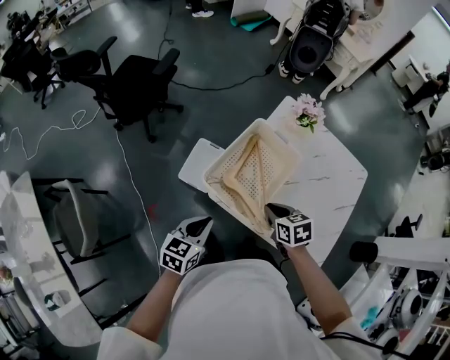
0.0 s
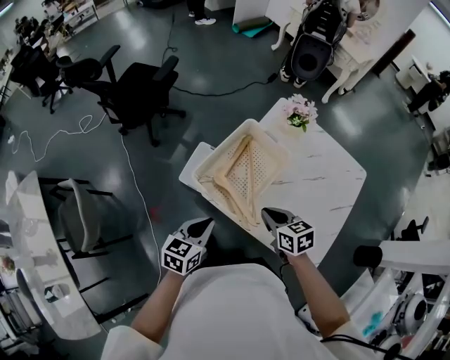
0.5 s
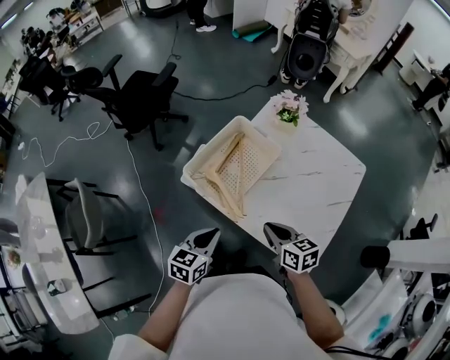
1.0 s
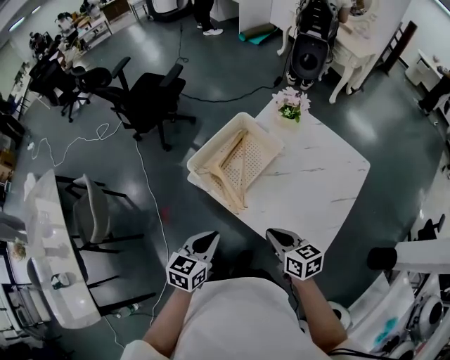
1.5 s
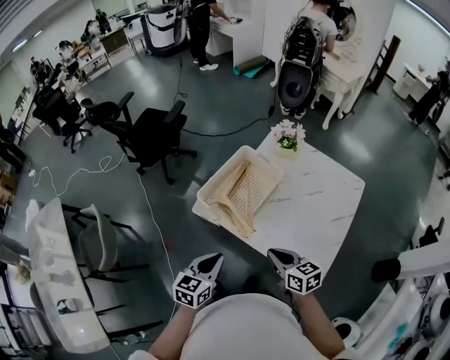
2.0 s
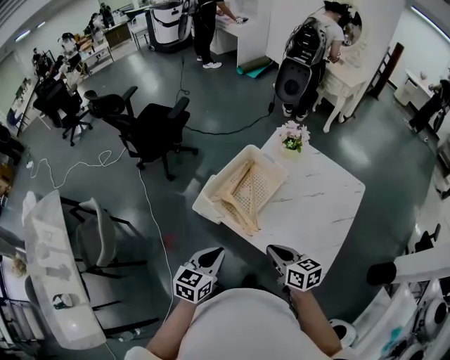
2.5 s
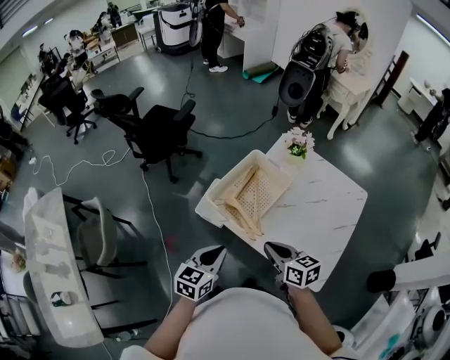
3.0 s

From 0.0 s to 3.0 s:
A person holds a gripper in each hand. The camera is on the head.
From 0.0 s to 1.5 s: The right gripper heads backward and to the right, covering some 20 cm, and rotates some 20 degrees. Meanwhile the left gripper travels to the right, backward and upward by about 20 cm.
From 1.5 s to 3.0 s: The left gripper moves to the left, approximately 5 cm. The right gripper moves to the left and upward, some 10 cm.

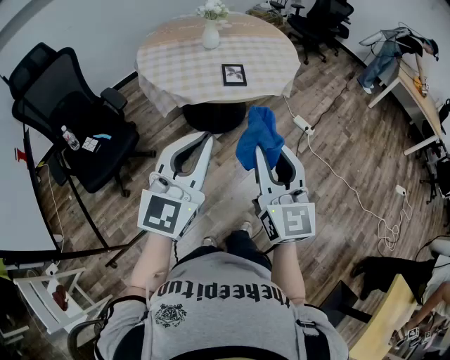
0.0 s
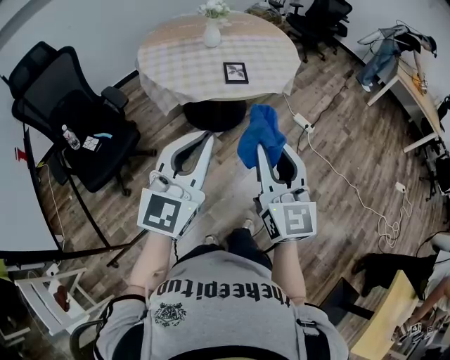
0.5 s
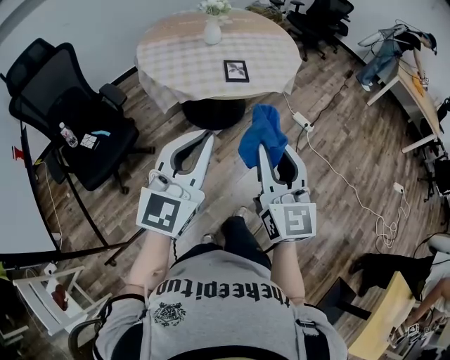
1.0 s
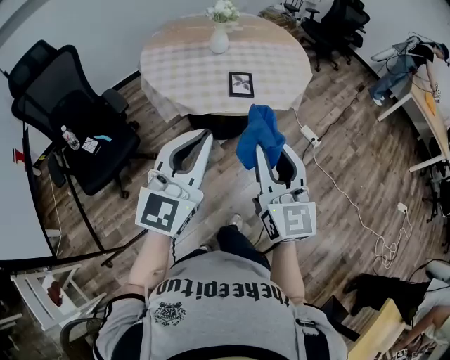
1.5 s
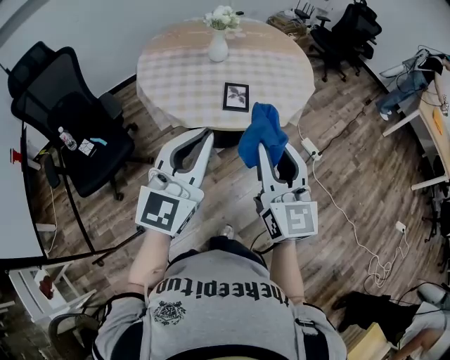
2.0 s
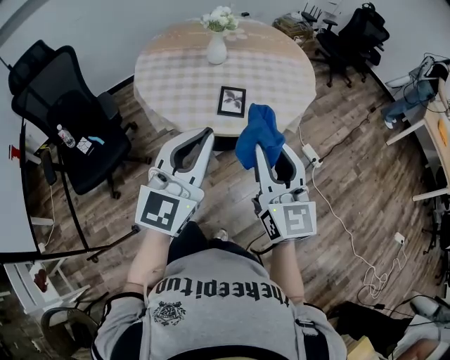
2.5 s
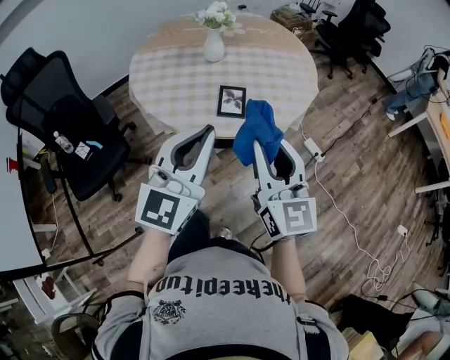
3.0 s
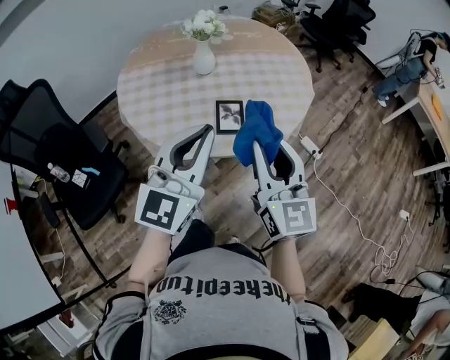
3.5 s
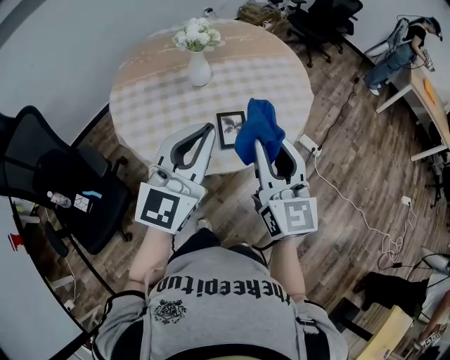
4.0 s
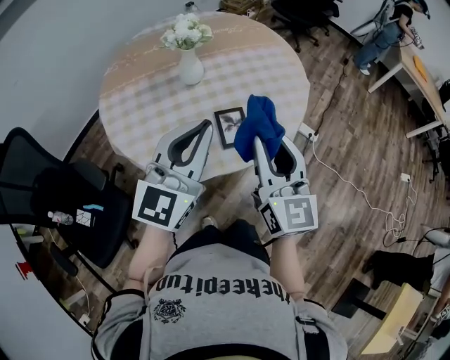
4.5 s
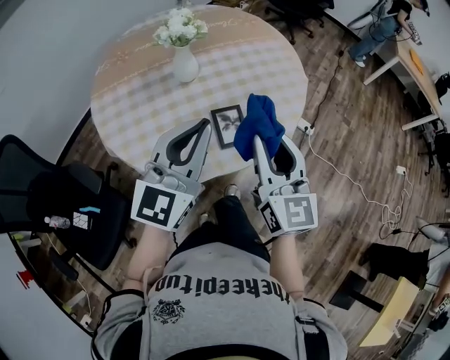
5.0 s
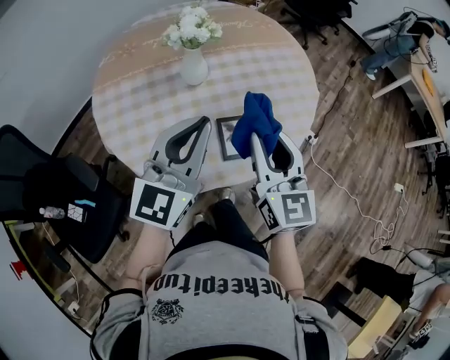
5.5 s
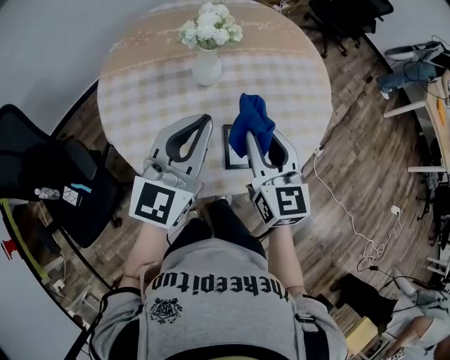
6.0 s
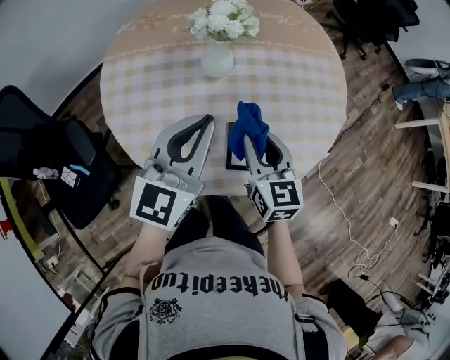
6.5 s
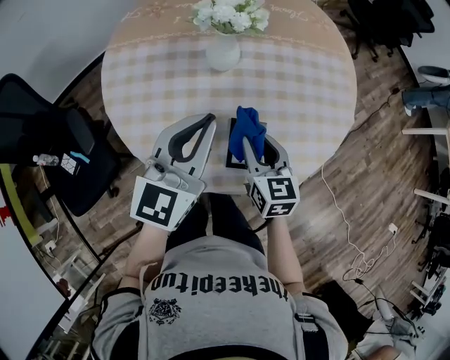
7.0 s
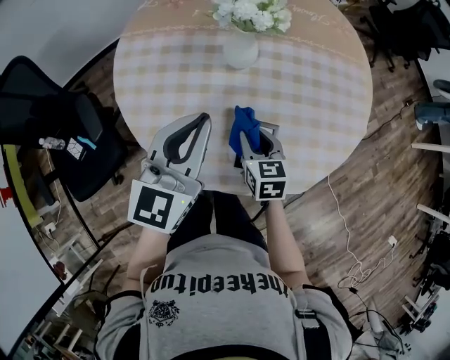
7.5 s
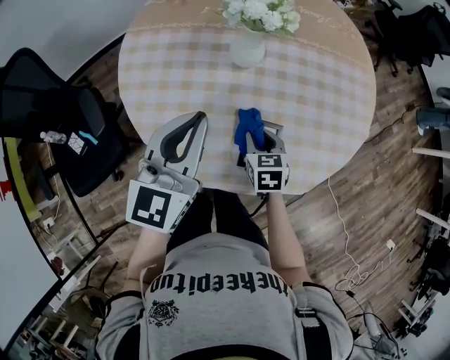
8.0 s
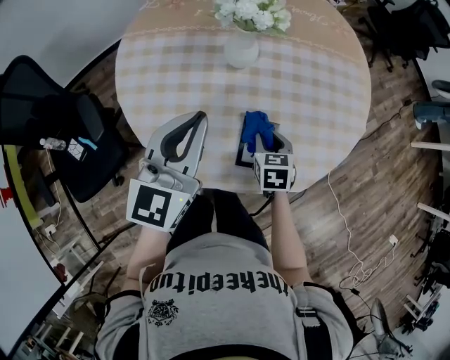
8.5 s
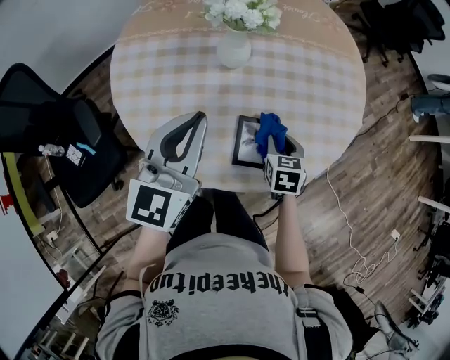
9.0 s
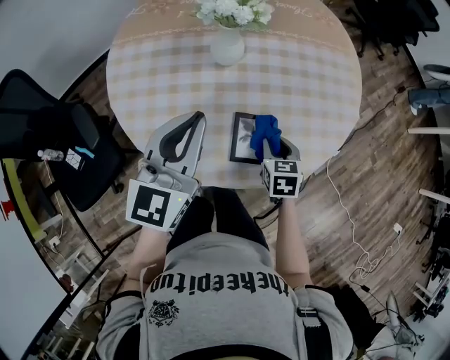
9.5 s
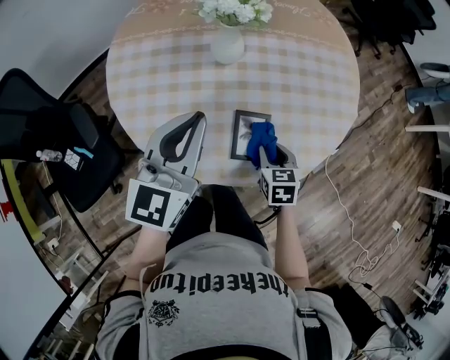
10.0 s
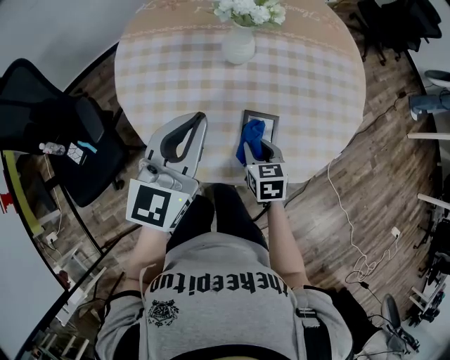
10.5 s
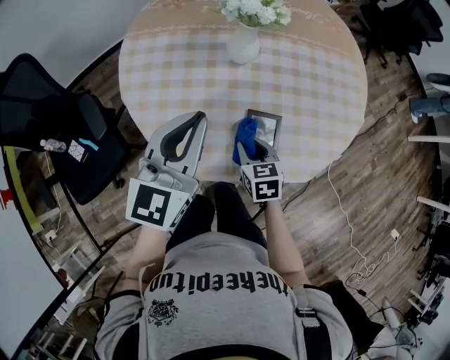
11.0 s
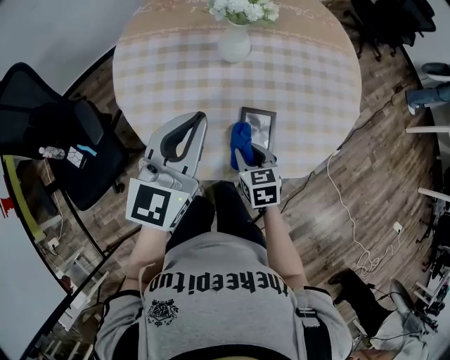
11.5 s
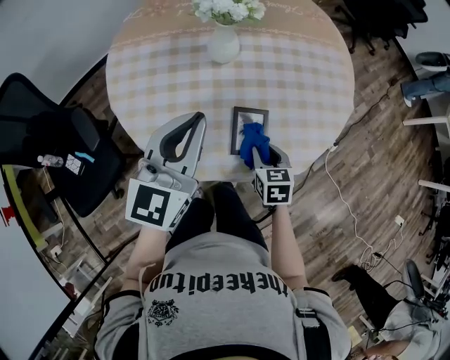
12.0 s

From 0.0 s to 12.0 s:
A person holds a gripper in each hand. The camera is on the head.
From 0.0 s to 2.0 s: The two grippers go some 15 cm forward.
From 2.0 s to 4.0 s: The grippers both shift forward by approximately 15 cm.
From 4.0 s to 6.0 s: The right gripper is displaced forward, downward and to the left by roughly 20 cm, while the left gripper moves forward and to the left, some 15 cm.
From 6.0 s to 8.0 s: The left gripper travels downward by some 5 cm; the right gripper goes some 25 cm downward, and angles its fingers downward, by approximately 40 degrees.
From 8.0 s to 10.0 s: The right gripper shifts about 10 cm to the right and backward.
From 10.0 s to 12.0 s: The right gripper moves some 10 cm to the left and comes back.

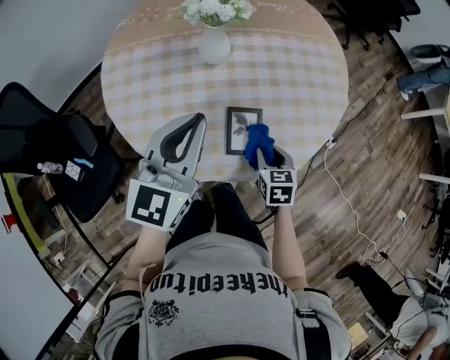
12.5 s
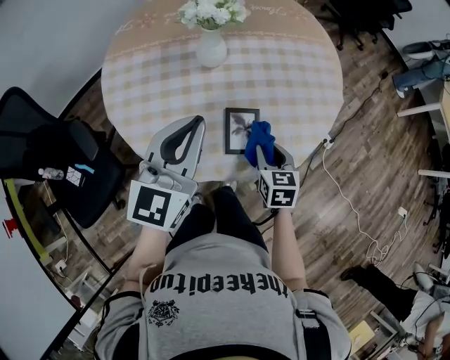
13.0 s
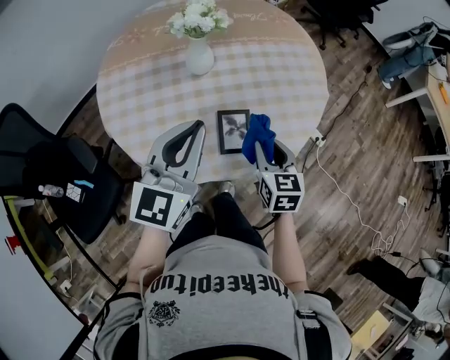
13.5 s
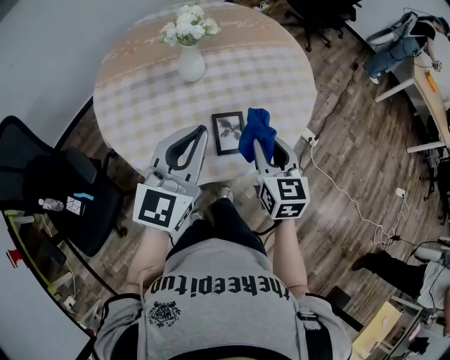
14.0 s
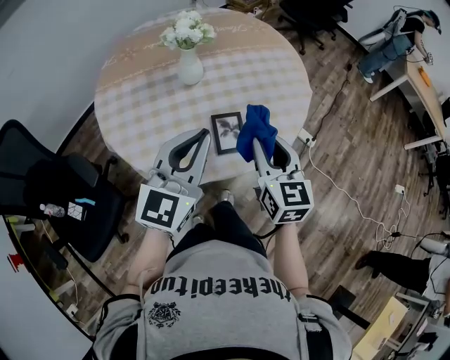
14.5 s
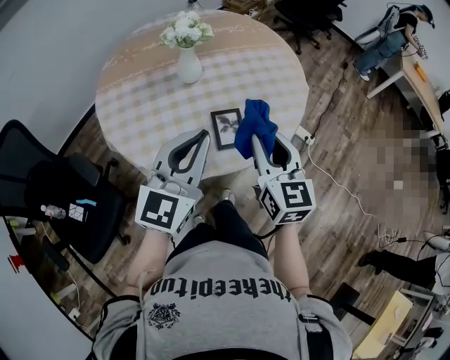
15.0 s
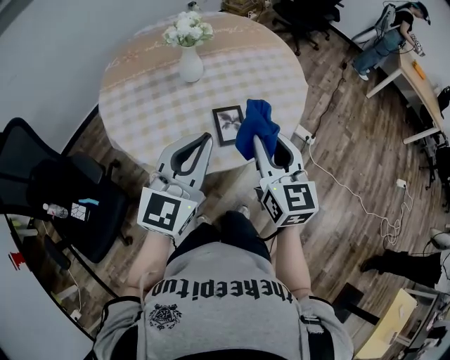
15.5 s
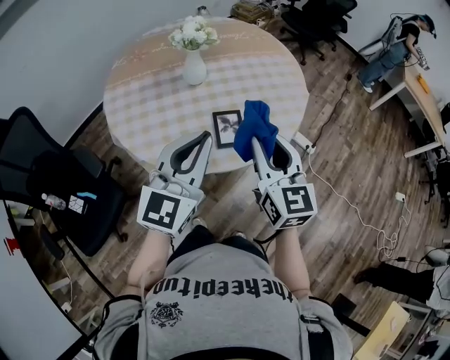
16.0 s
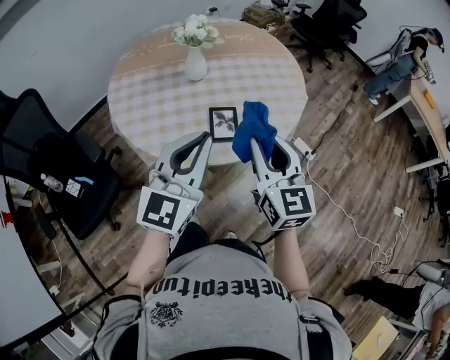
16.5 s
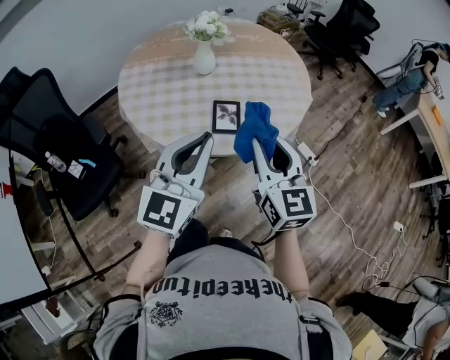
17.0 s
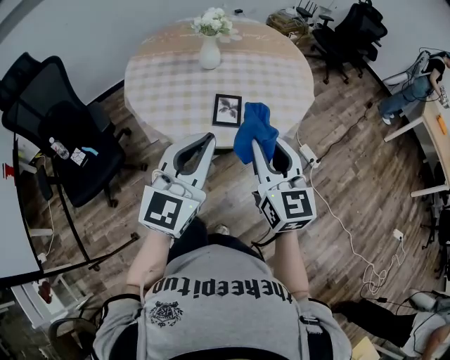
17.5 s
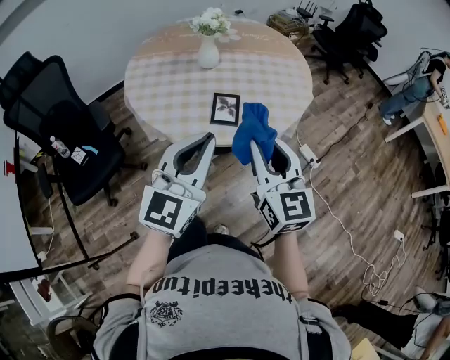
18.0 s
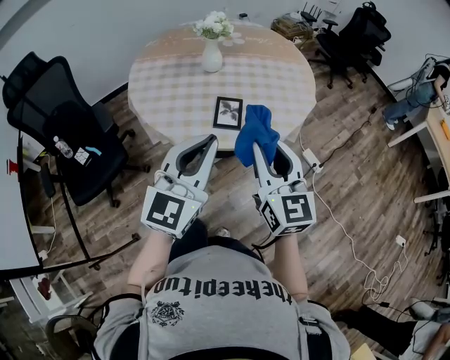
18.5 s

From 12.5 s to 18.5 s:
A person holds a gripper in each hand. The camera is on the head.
From 12.5 s to 14.5 s: The left gripper goes roughly 10 cm backward, while the right gripper shifts some 20 cm upward, and points its fingers approximately 30 degrees further upward.
From 14.5 s to 16.5 s: The right gripper heads backward and upward, covering approximately 10 cm. The left gripper heads backward and to the right, covering about 10 cm.
From 16.5 s to 18.5 s: Both grippers move backward, roughly 10 cm.

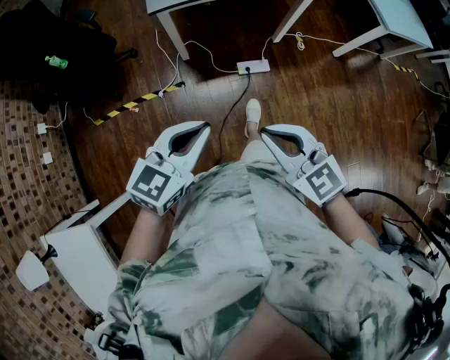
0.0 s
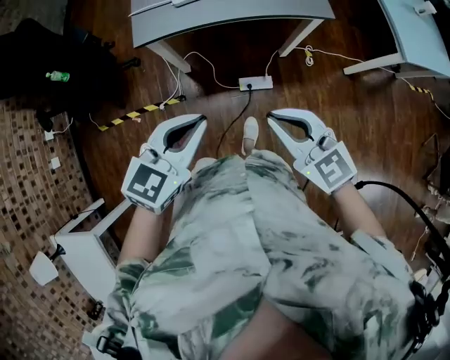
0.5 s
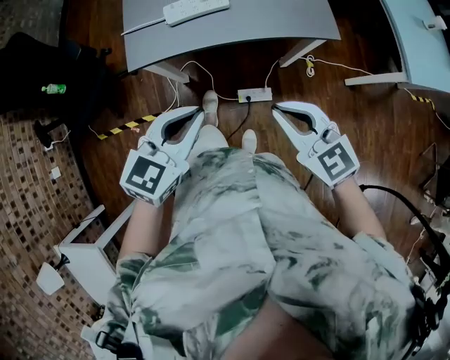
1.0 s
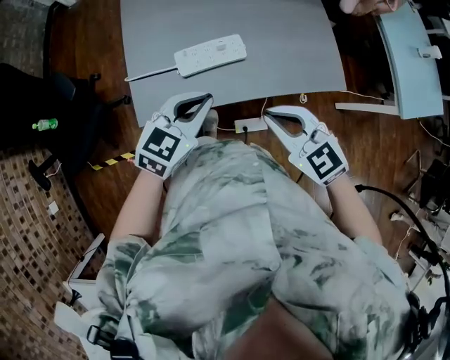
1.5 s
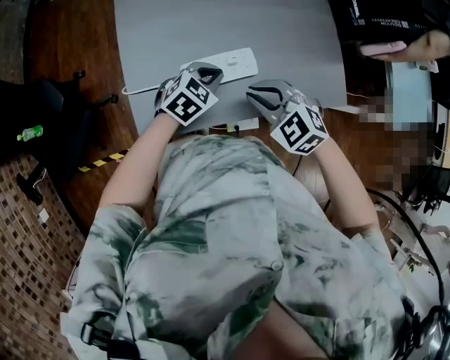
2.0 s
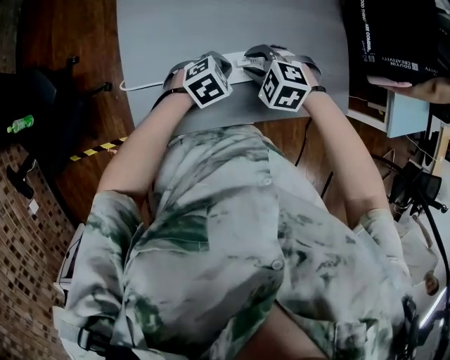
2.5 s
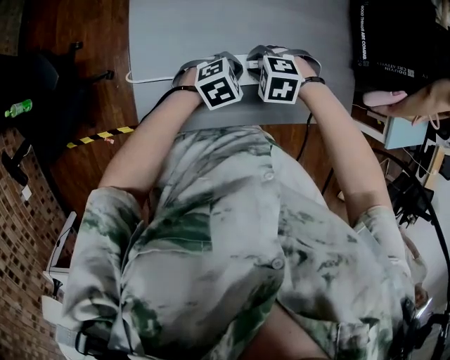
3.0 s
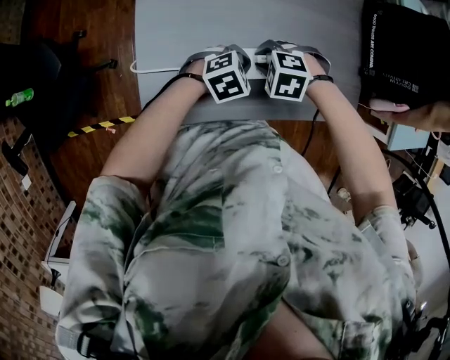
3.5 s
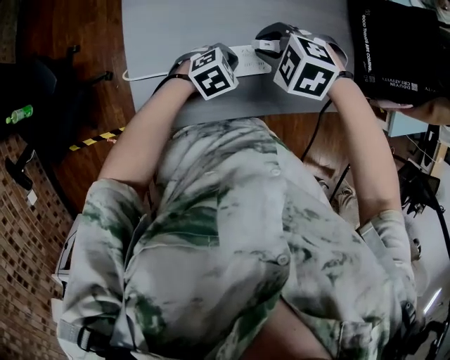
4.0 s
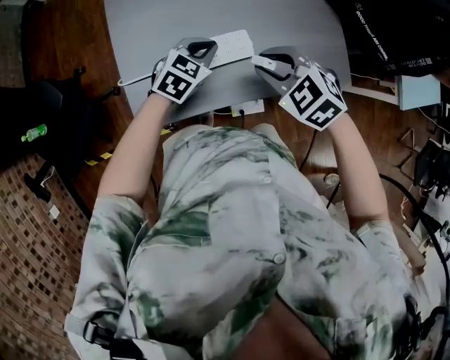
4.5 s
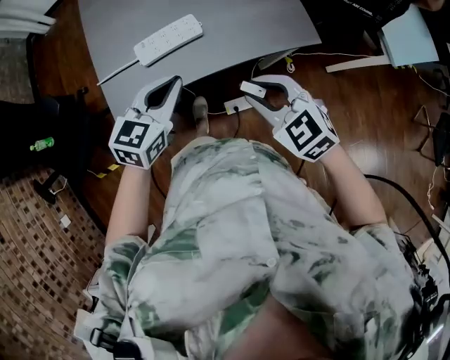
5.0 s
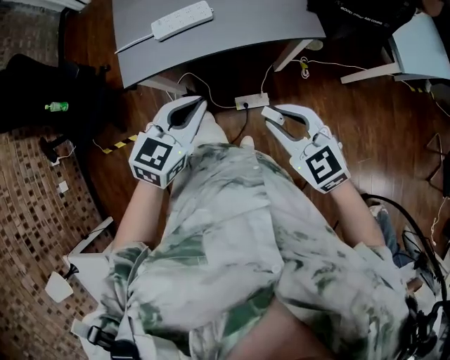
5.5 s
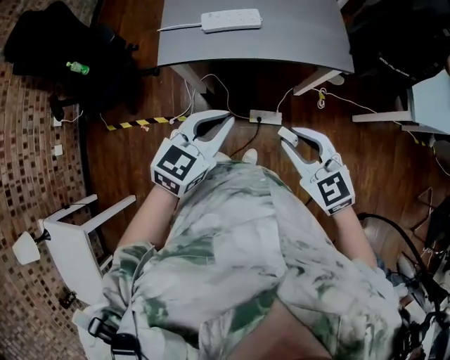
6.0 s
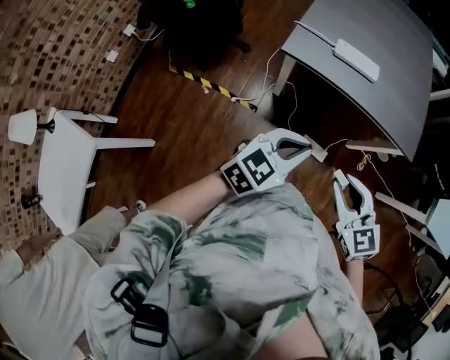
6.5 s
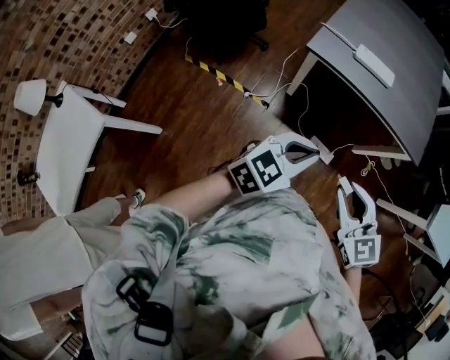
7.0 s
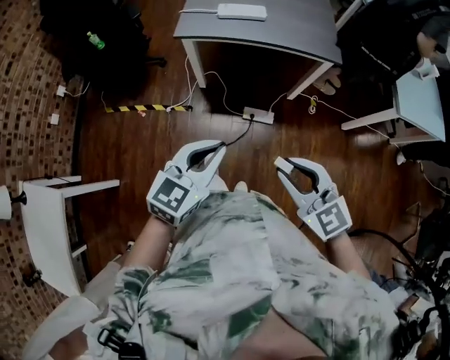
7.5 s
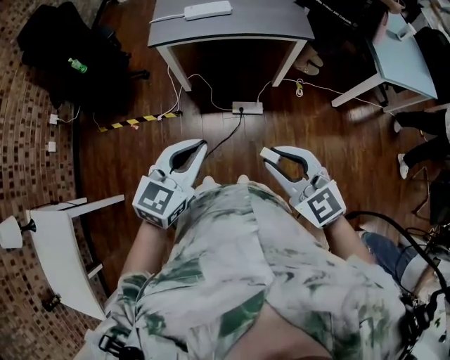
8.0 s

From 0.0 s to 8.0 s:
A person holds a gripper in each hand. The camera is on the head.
From 0.0 s to 2.0 s: Both grippers are carried forward, some 60 cm. The right gripper turns by about 40 degrees; the left gripper rotates about 30 degrees.
From 2.0 s to 4.0 s: The left gripper goes about 5 cm downward; the right gripper moves some 10 cm downward and comes back, and changes its angle by roughly 30 degrees.
From 4.0 s to 6.0 s: The right gripper changes place by some 40 cm, and tilts its fingers roughly 50 degrees upward. Meanwhile the left gripper changes place by some 40 cm, and turns by some 40 degrees.
From 6.0 s to 8.0 s: The two grippers go some 25 cm backward.
